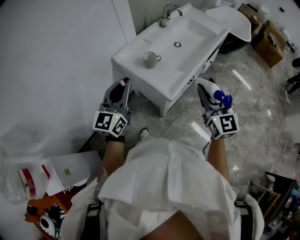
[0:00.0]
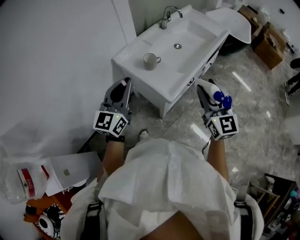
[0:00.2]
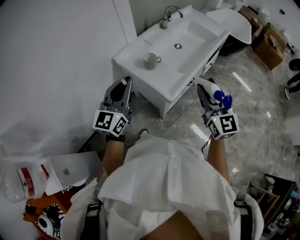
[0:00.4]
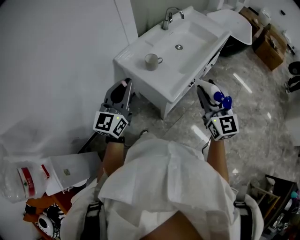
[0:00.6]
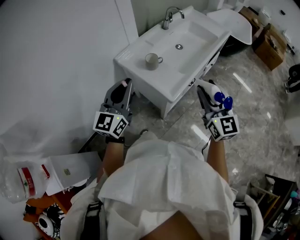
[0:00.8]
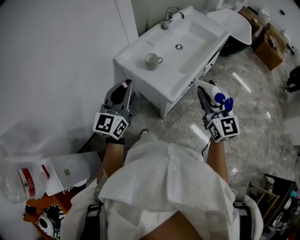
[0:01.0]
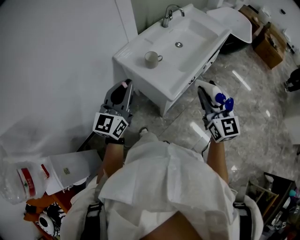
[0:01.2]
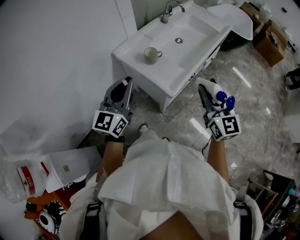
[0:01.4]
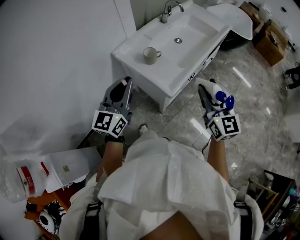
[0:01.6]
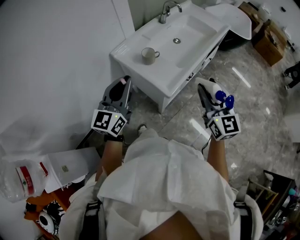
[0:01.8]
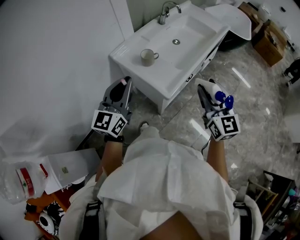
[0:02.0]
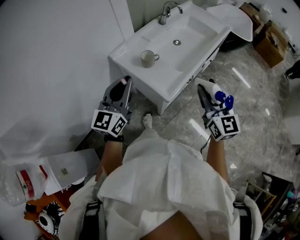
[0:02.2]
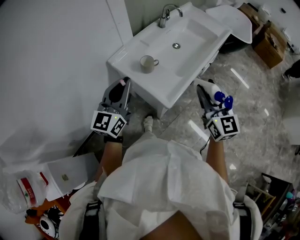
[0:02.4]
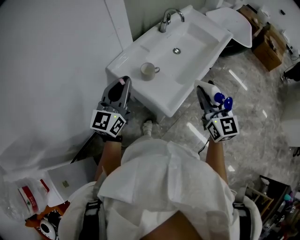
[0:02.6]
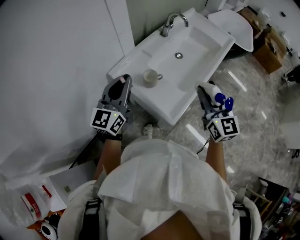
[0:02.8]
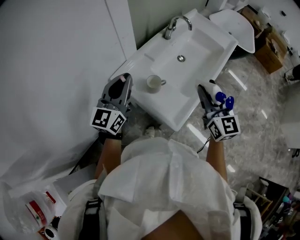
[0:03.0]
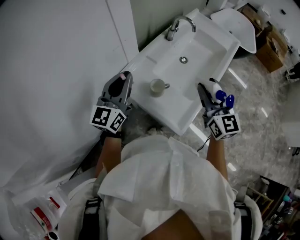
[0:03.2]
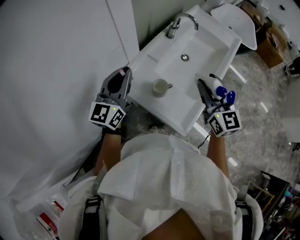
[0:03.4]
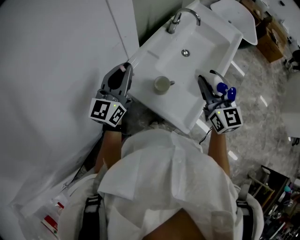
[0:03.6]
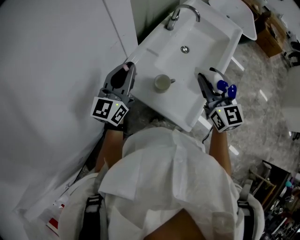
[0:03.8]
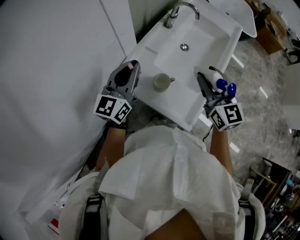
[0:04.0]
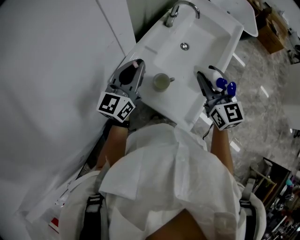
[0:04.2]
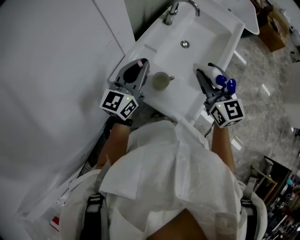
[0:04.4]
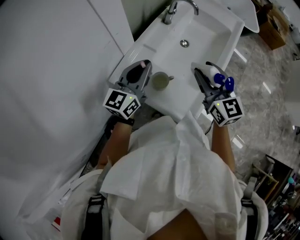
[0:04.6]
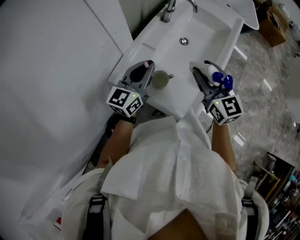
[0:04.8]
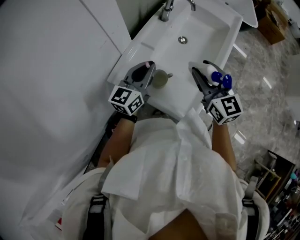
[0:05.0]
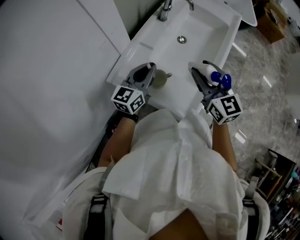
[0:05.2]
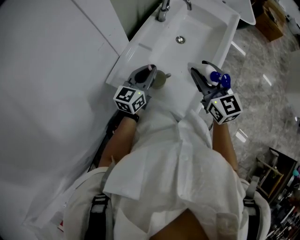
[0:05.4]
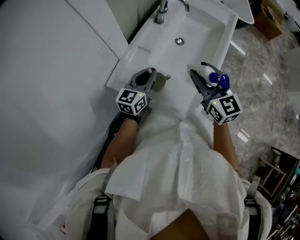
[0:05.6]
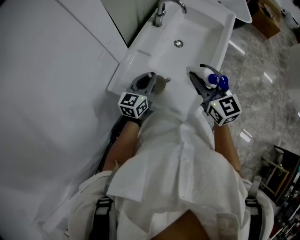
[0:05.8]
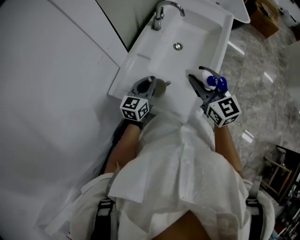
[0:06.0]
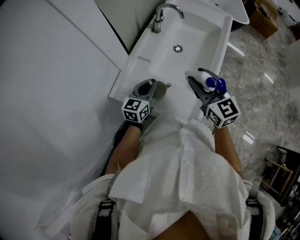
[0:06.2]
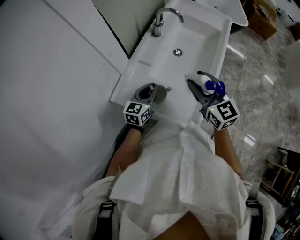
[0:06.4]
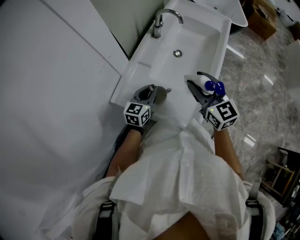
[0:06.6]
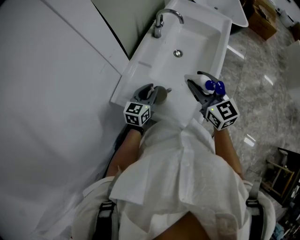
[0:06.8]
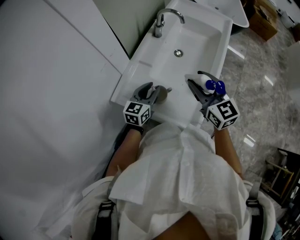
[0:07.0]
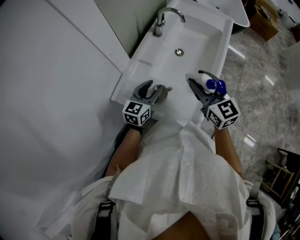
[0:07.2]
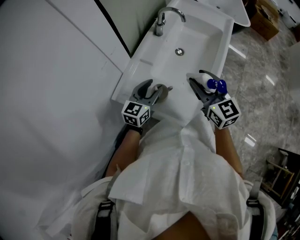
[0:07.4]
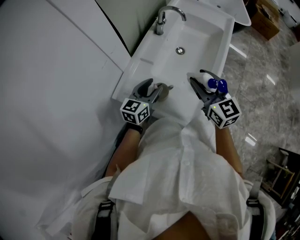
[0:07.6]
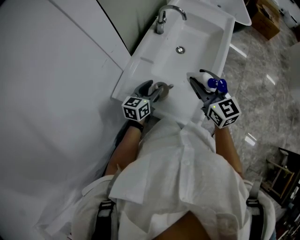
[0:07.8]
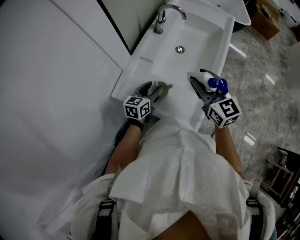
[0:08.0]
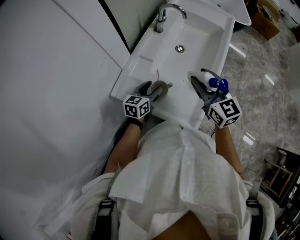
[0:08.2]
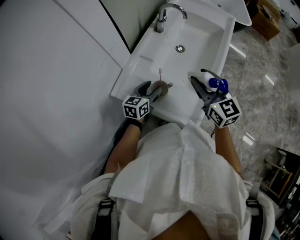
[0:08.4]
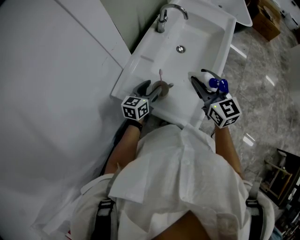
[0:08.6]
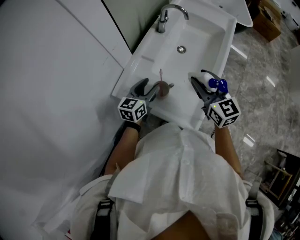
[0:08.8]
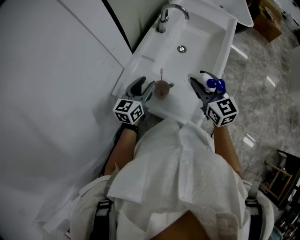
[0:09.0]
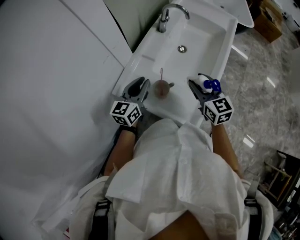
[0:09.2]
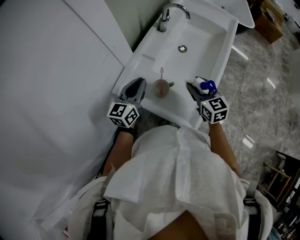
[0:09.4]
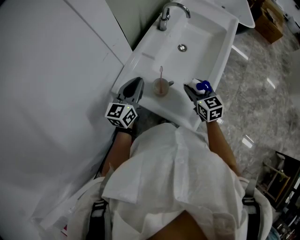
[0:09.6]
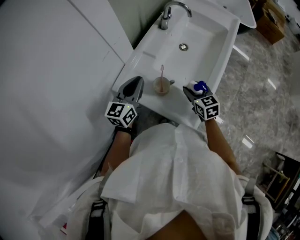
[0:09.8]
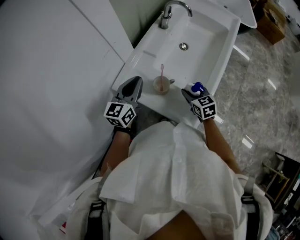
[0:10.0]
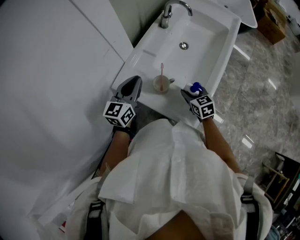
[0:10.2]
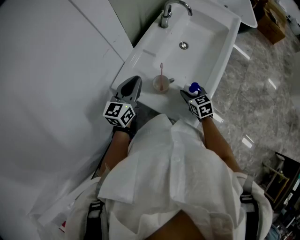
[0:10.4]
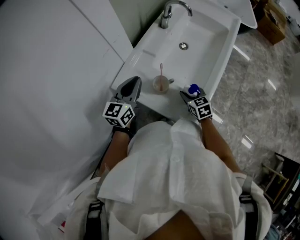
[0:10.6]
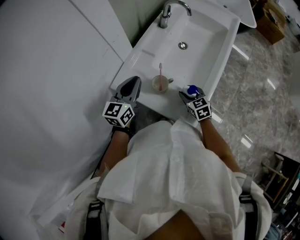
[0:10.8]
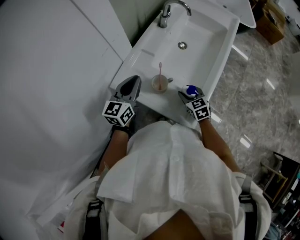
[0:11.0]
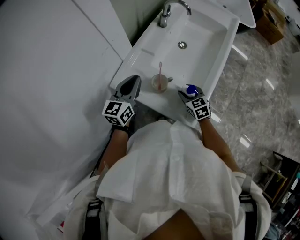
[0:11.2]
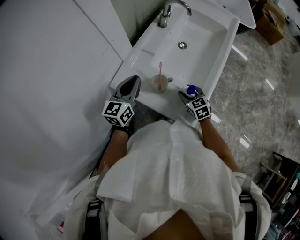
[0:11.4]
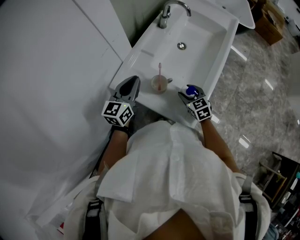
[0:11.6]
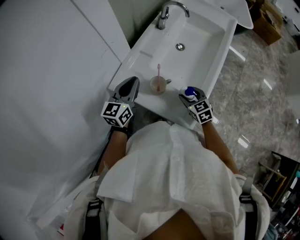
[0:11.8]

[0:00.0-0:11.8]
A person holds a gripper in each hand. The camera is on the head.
0:00.0 to 0:01.4: The grippers make only small movements.
0:01.4 to 0:03.0: Both grippers travel together forward, roughly 20 cm.
0:03.0 to 0:04.4: The left gripper travels forward and downward by some 15 cm, while the right gripper shifts about 10 cm forward and to the left.
0:04.4 to 0:06.0: The left gripper is displaced downward by approximately 15 cm.
0:06.0 to 0:07.4: The left gripper opens its fingers.
0:08.8 to 0:10.4: The right gripper heads downward, covering approximately 20 cm, and swivels about 30 degrees, while the left gripper heads upward and to the left, covering about 10 cm, and closes.
0:10.4 to 0:11.8: The grippers make only small movements.

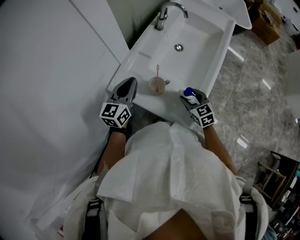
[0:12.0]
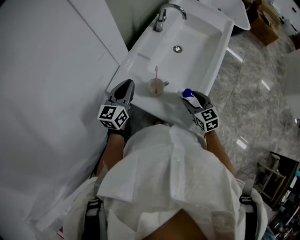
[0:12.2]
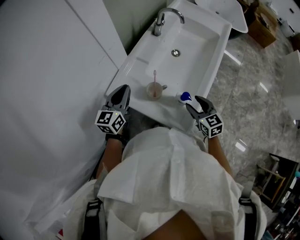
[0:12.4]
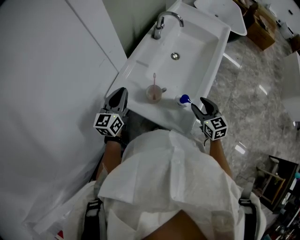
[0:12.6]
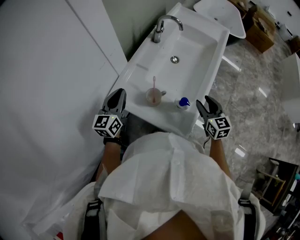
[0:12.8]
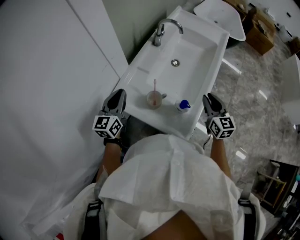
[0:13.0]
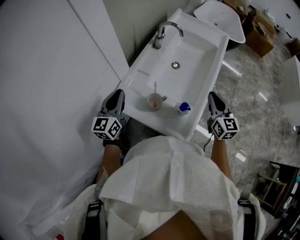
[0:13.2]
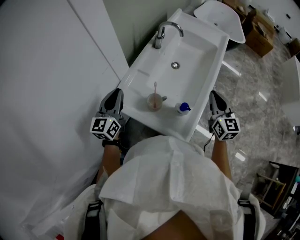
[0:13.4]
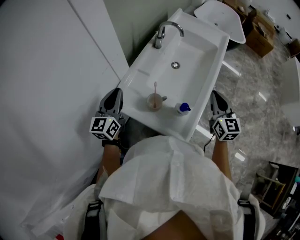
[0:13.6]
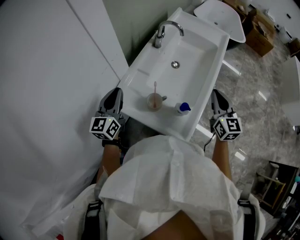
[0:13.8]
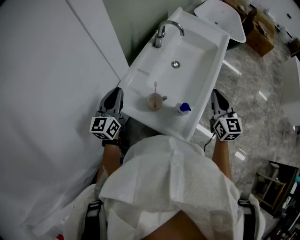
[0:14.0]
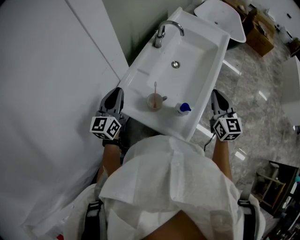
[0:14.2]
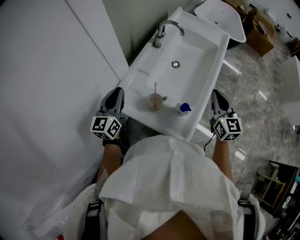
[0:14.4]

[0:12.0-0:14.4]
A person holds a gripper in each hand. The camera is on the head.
0:12.0 to 0:13.2: The left gripper moves roughly 5 cm; the right gripper moves upward and to the right, approximately 20 cm, changes its angle by roughly 30 degrees, and closes its fingers.
0:13.2 to 0:14.4: The grippers make only small movements.

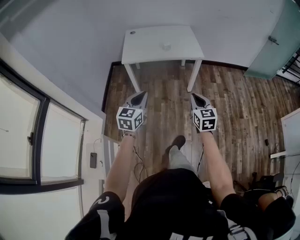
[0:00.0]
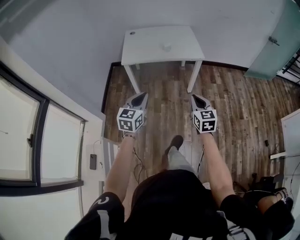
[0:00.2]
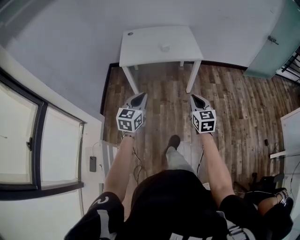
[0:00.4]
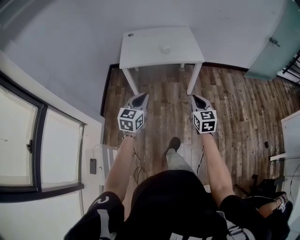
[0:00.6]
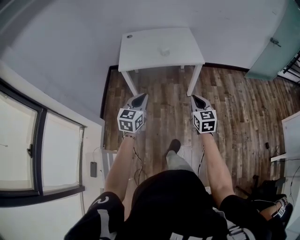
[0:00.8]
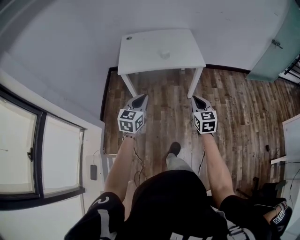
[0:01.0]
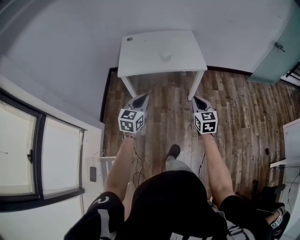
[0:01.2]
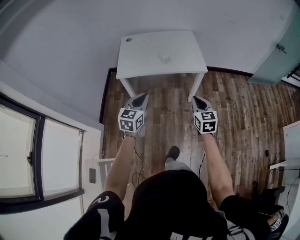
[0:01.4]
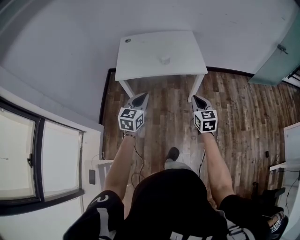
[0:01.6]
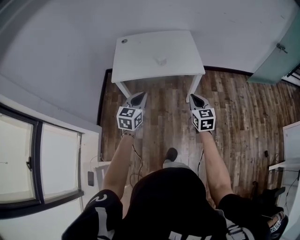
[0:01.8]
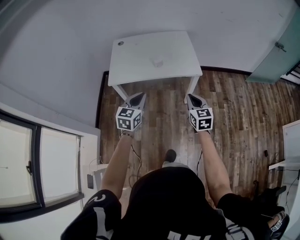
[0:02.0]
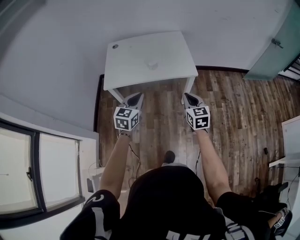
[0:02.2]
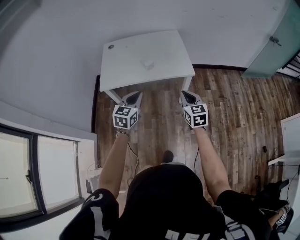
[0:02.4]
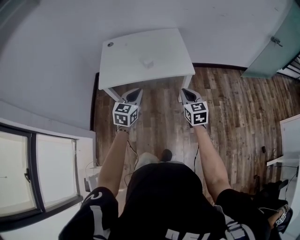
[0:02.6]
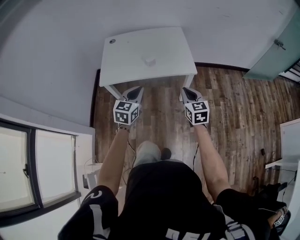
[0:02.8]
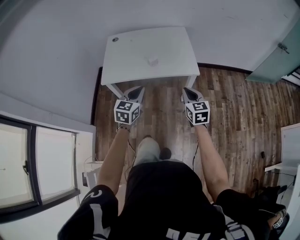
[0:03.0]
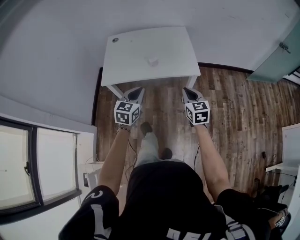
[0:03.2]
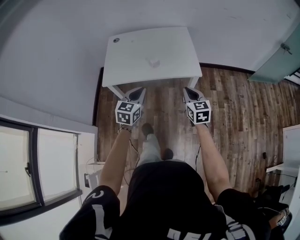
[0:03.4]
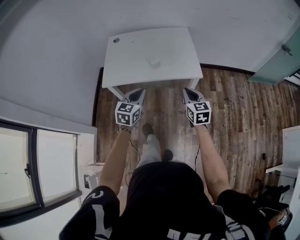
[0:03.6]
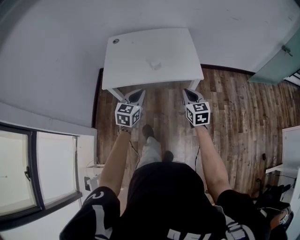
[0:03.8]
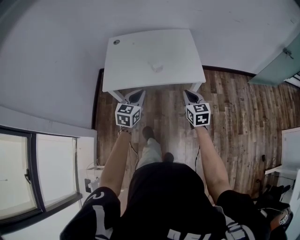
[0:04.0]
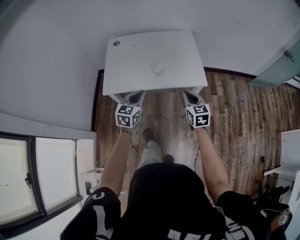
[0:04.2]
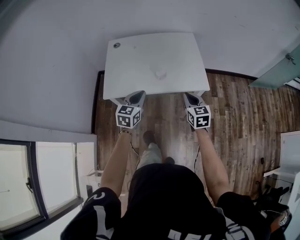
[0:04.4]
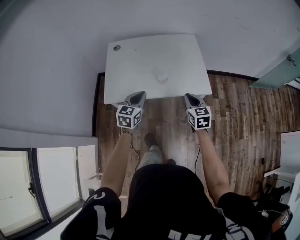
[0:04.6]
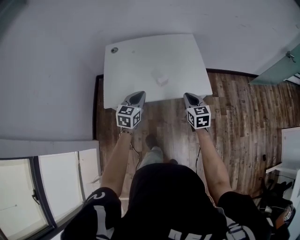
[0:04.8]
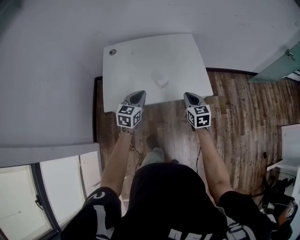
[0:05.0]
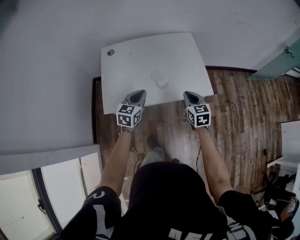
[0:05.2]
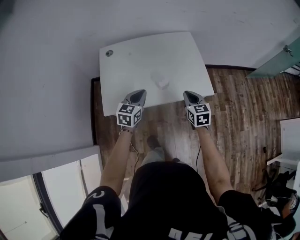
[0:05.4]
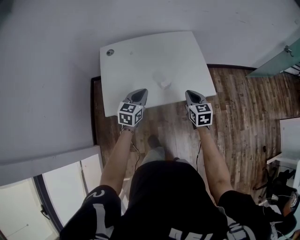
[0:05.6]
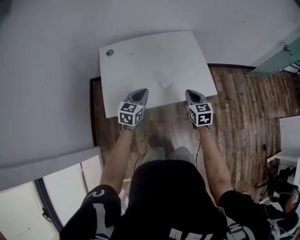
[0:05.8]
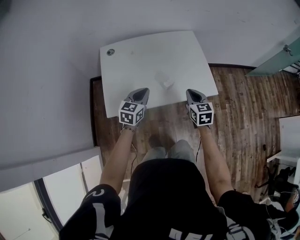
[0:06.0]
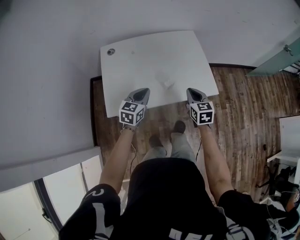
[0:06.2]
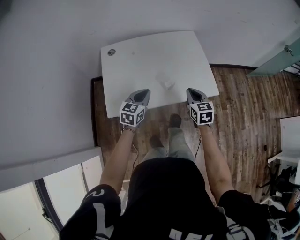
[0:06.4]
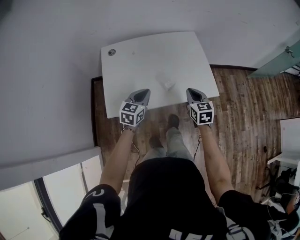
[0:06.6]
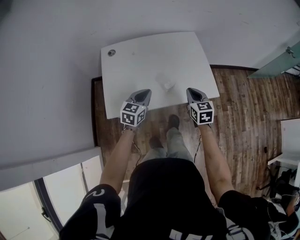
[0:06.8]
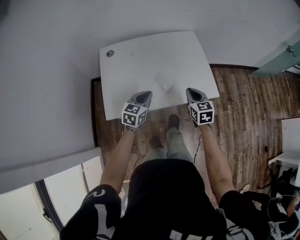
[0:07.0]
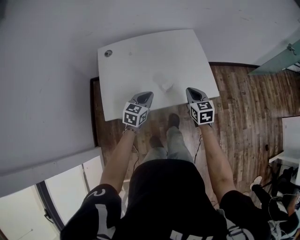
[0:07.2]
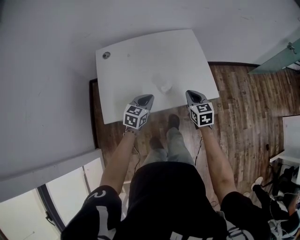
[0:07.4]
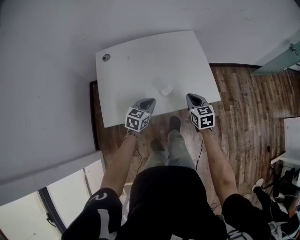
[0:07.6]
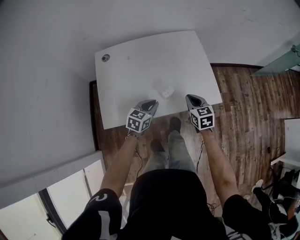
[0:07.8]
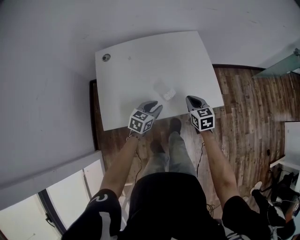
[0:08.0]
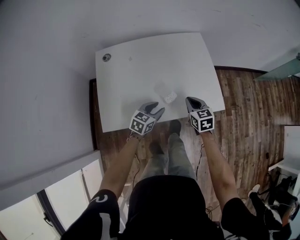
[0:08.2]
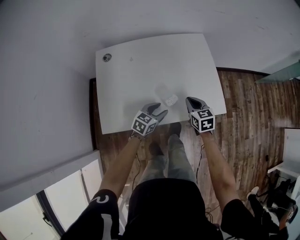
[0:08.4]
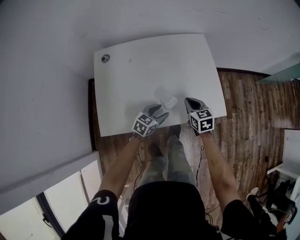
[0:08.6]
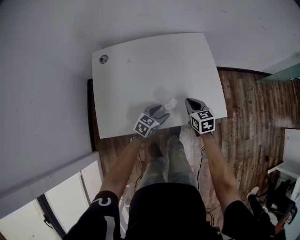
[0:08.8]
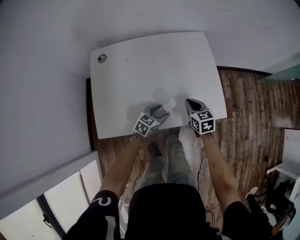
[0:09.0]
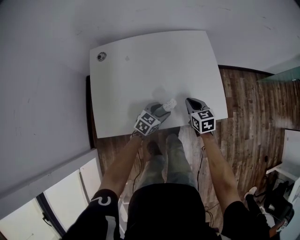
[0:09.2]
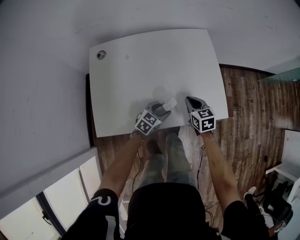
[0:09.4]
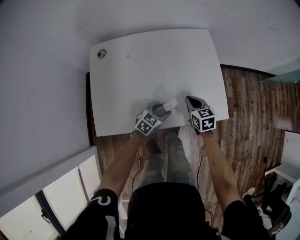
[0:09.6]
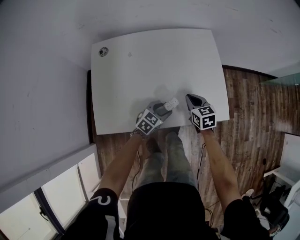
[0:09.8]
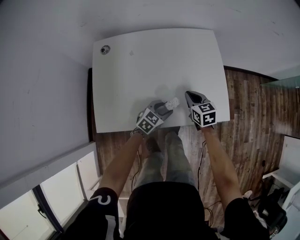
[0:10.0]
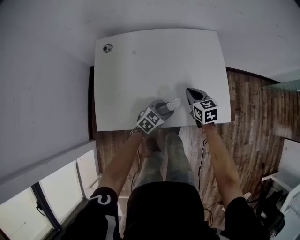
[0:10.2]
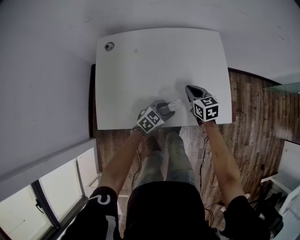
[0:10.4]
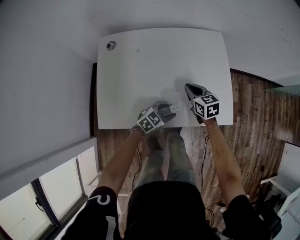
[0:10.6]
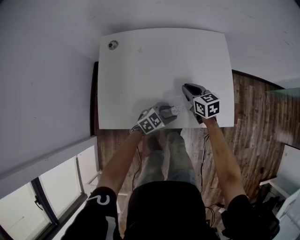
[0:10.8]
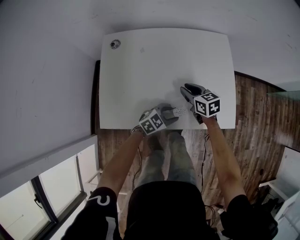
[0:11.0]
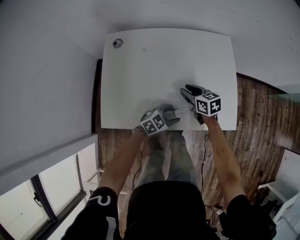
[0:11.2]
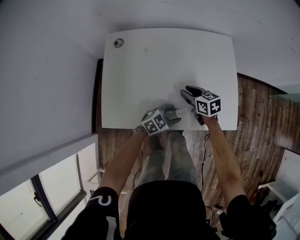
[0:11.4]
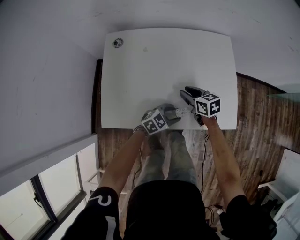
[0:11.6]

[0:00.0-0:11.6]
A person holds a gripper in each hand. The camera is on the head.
0:00.0 to 0:01.4: The two grippers go some 20 cm forward.
0:01.4 to 0:02.8: The left gripper shifts approximately 15 cm forward and to the right. Meanwhile the right gripper moves forward, about 15 cm.
0:02.8 to 0:04.4: Both grippers travel together forward and to the left, about 15 cm.
0:04.4 to 0:05.8: The two grippers go roughly 15 cm forward and to the left.
0:05.8 to 0:07.2: The left gripper changes place by roughly 5 cm.
0:07.2 to 0:08.8: The grippers both shift downward and forward by approximately 15 cm. The left gripper opens.
0:08.8 to 0:10.2: The right gripper shifts by some 5 cm.
0:10.2 to 0:11.6: The right gripper moves to the left, about 5 cm, and opens up.
